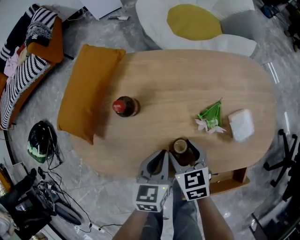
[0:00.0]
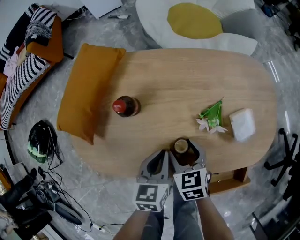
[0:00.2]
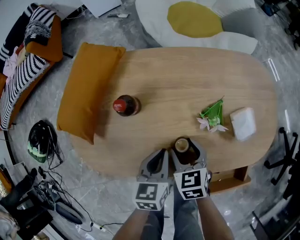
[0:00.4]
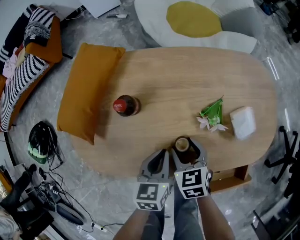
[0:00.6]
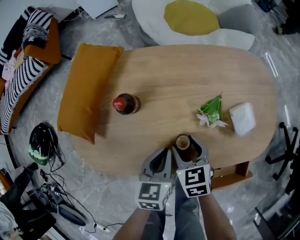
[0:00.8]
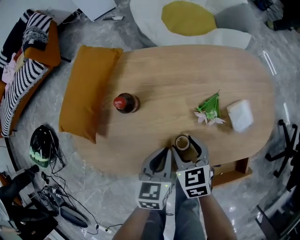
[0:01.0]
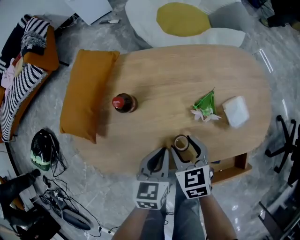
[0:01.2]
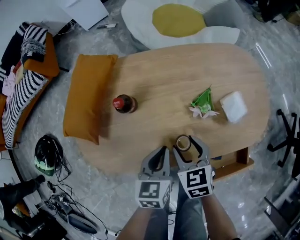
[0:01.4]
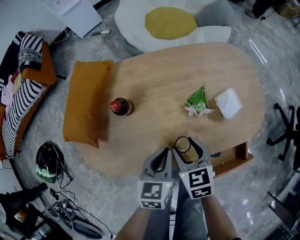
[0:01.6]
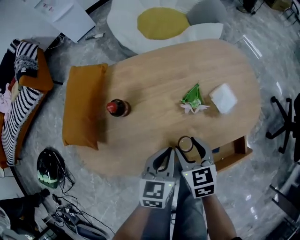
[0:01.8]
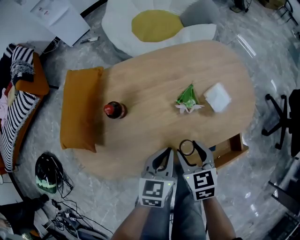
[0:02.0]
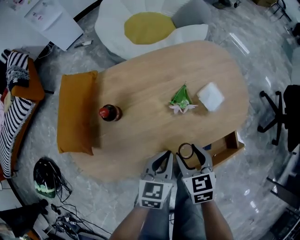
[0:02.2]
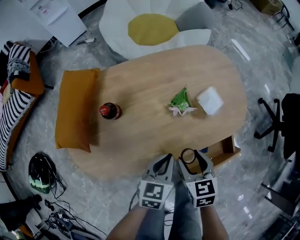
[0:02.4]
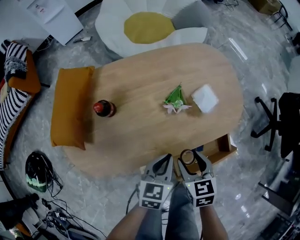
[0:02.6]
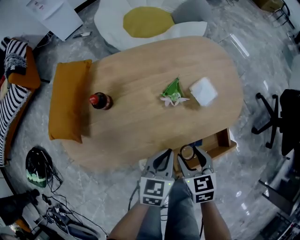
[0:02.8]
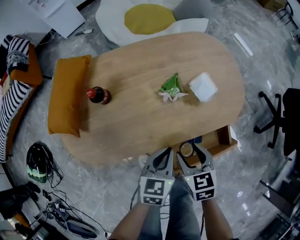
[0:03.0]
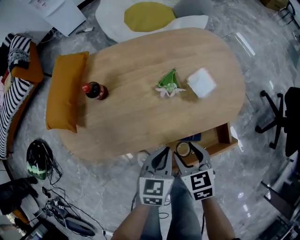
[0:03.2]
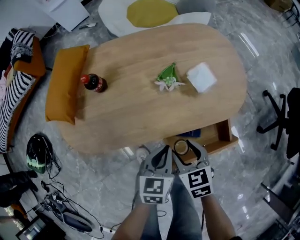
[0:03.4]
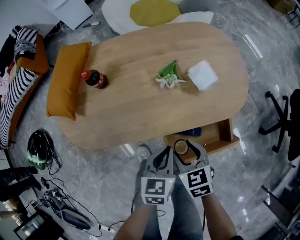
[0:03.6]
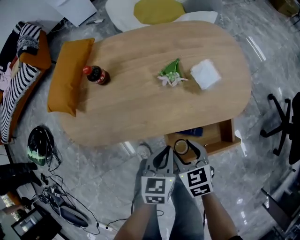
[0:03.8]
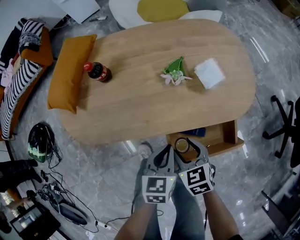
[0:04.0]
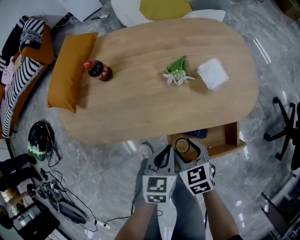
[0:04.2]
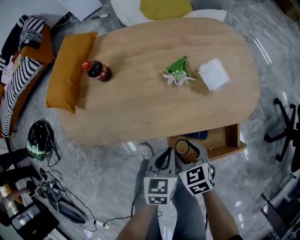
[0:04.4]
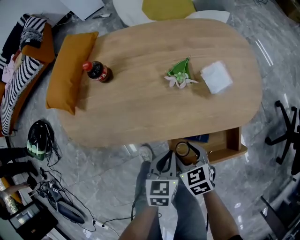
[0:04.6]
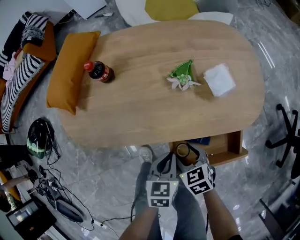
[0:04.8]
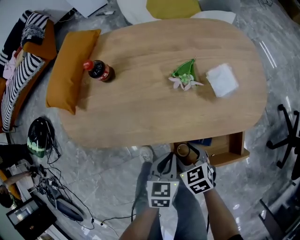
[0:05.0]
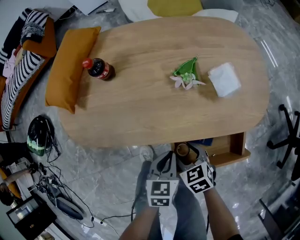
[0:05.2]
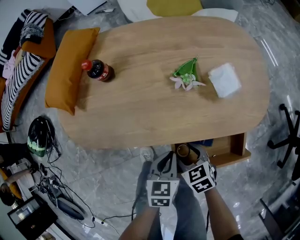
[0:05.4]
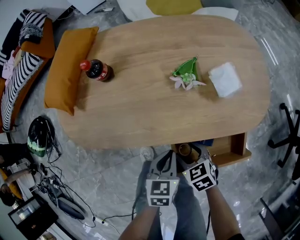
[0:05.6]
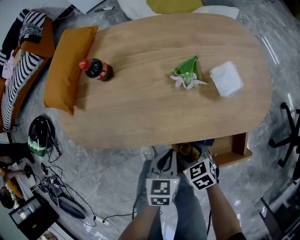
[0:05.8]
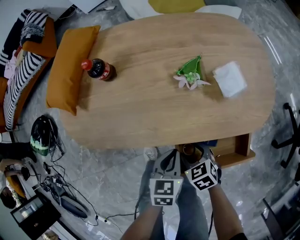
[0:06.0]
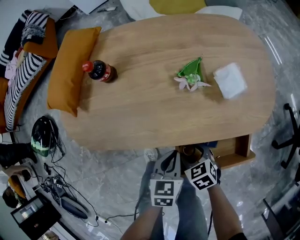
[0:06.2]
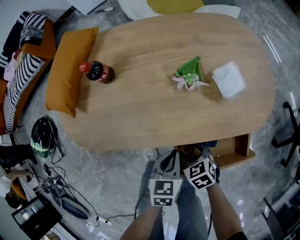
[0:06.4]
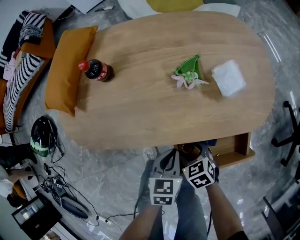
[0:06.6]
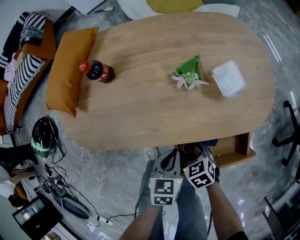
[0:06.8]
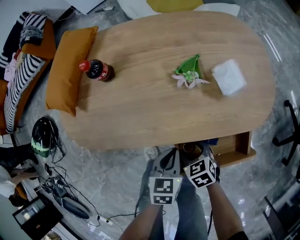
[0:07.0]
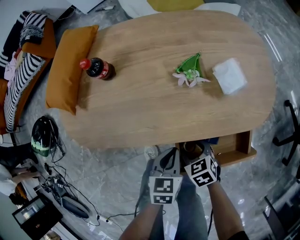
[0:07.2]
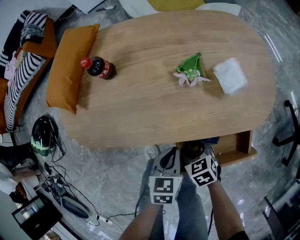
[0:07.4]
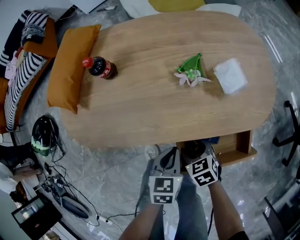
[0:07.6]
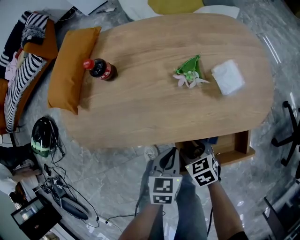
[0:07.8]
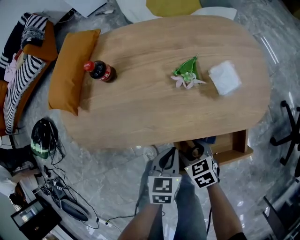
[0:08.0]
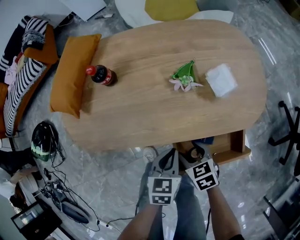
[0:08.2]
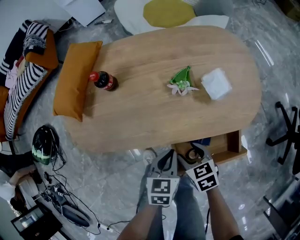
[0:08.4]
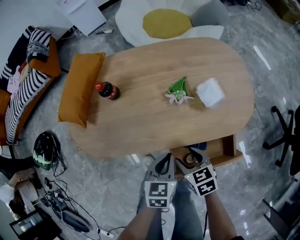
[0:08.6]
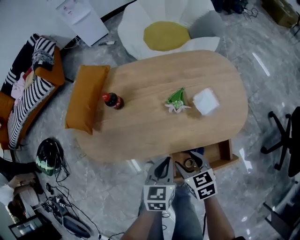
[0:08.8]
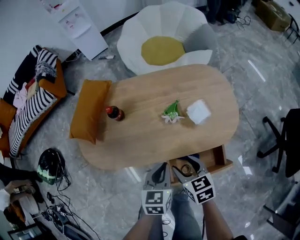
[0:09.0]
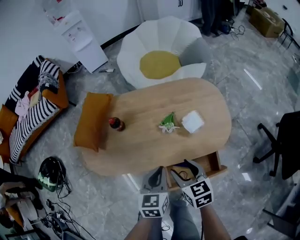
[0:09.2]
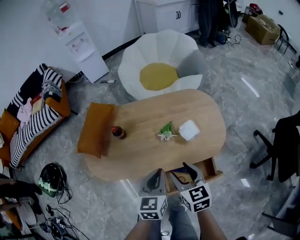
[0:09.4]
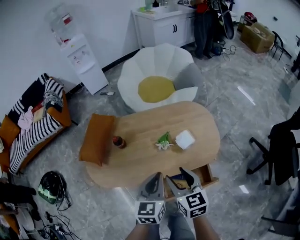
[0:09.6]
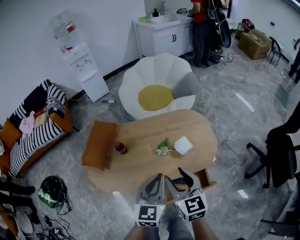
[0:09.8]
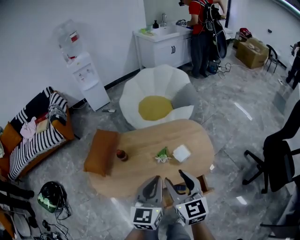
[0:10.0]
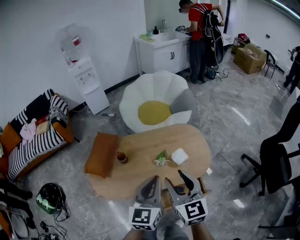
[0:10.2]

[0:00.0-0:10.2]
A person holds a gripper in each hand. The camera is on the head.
0:00.0 to 0:01.4: The right gripper shifts by roughly 5 cm.
0:01.4 to 0:03.0: The two grippers go approximately 15 cm to the right and backward.
0:03.0 to 0:04.4: The left gripper goes approximately 10 cm downward and backward. Meanwhile the right gripper goes some 10 cm downward, and rotates some 20 degrees.
0:04.4 to 0:05.8: The right gripper is displaced downward by roughly 5 cm.
0:05.8 to 0:07.2: There are only small adjustments of the grippers.
0:07.2 to 0:08.8: The two grippers go roughly 15 cm upward.
0:08.8 to 0:10.2: The two grippers go roughly 35 cm upward. The left gripper angles its fingers upward, by about 30 degrees. The right gripper tips its fingers upward by roughly 40 degrees.

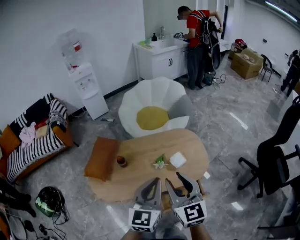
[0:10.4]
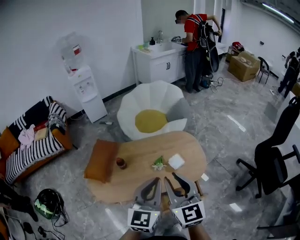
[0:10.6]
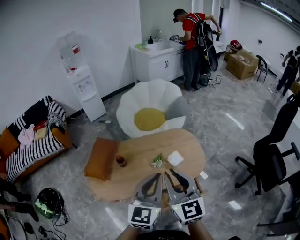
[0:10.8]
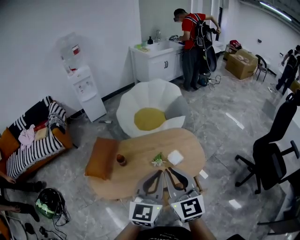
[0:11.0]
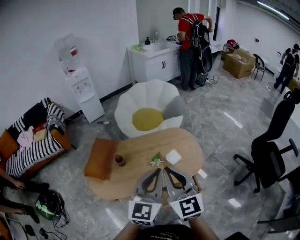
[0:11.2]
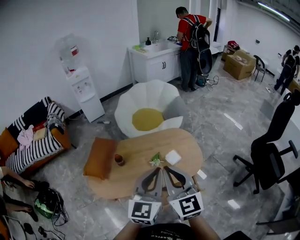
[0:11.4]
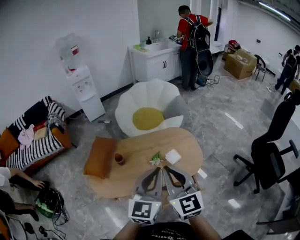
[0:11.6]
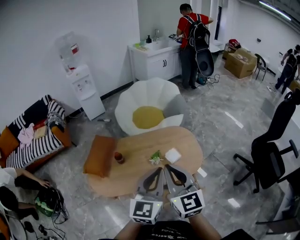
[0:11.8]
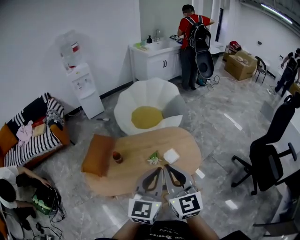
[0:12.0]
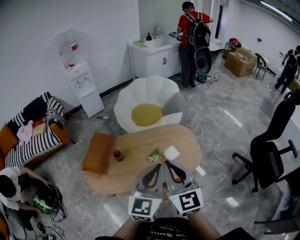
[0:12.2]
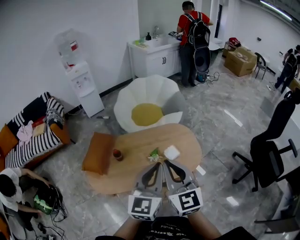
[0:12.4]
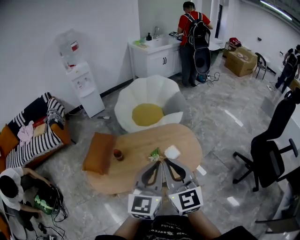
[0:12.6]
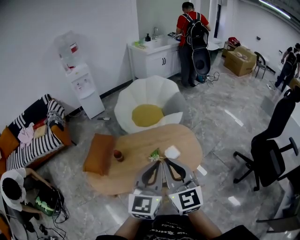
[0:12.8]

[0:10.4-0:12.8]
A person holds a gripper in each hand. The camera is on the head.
0:10.4 to 0:11.6: The grippers both shift upward by about 5 cm. The right gripper closes its fingers.
0:11.6 to 0:12.8: The grippers move only a little.

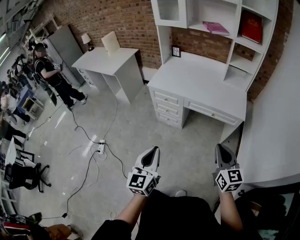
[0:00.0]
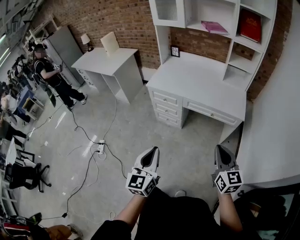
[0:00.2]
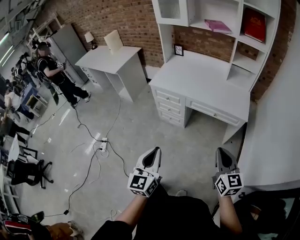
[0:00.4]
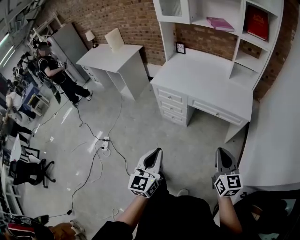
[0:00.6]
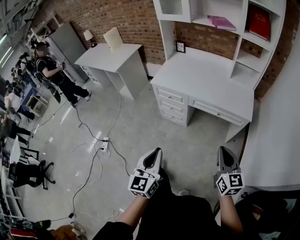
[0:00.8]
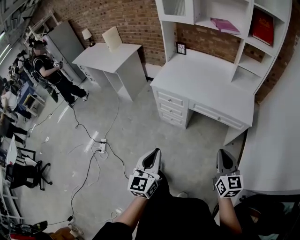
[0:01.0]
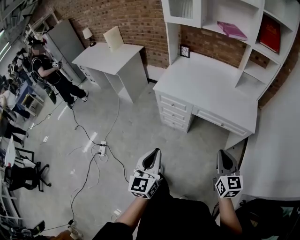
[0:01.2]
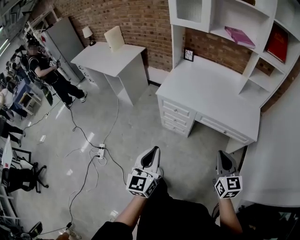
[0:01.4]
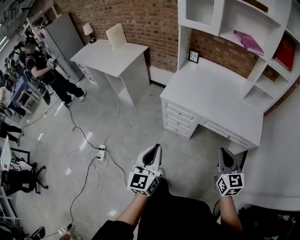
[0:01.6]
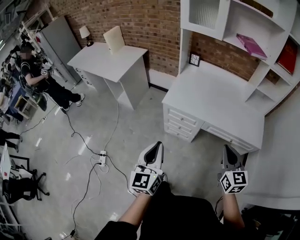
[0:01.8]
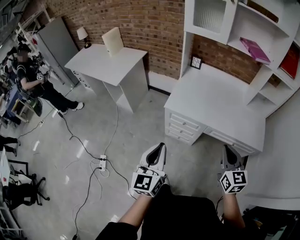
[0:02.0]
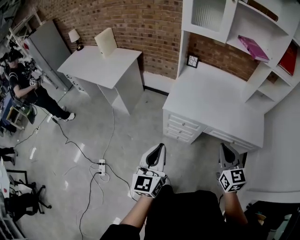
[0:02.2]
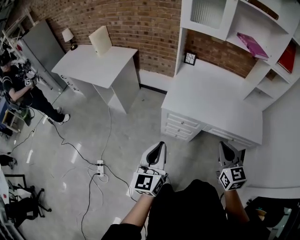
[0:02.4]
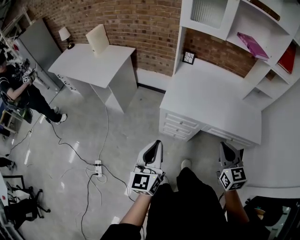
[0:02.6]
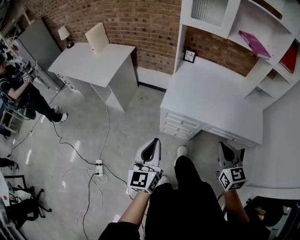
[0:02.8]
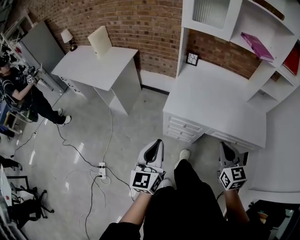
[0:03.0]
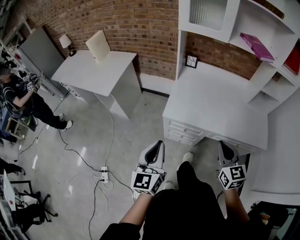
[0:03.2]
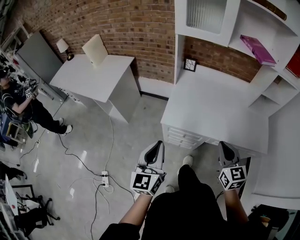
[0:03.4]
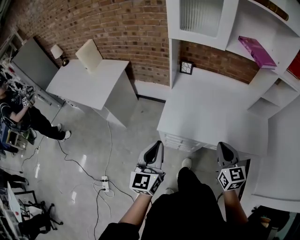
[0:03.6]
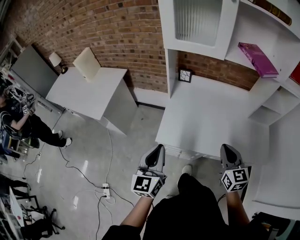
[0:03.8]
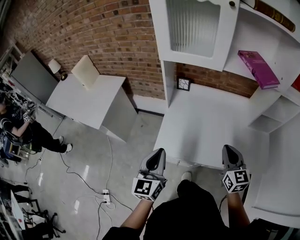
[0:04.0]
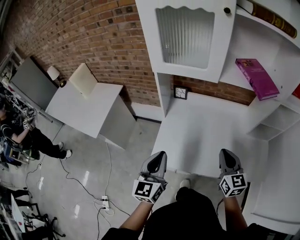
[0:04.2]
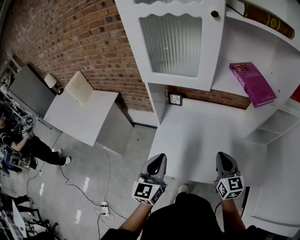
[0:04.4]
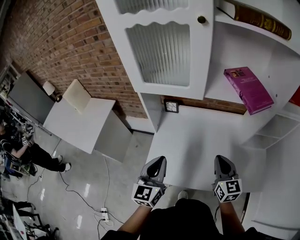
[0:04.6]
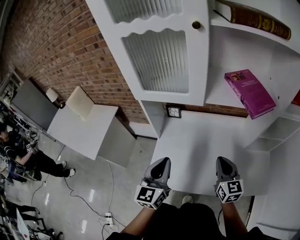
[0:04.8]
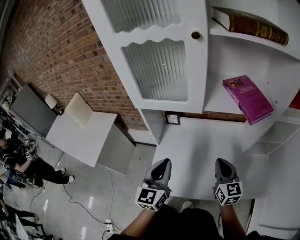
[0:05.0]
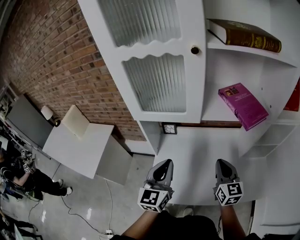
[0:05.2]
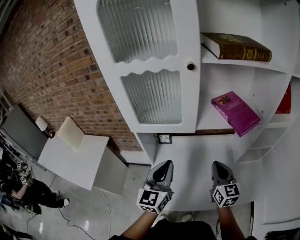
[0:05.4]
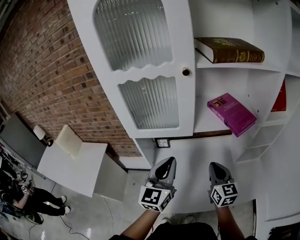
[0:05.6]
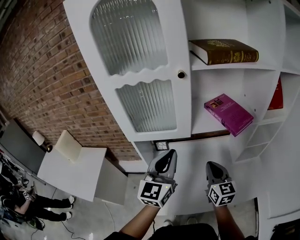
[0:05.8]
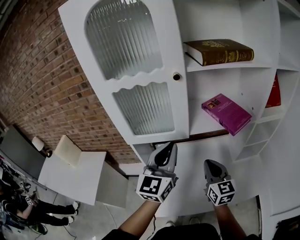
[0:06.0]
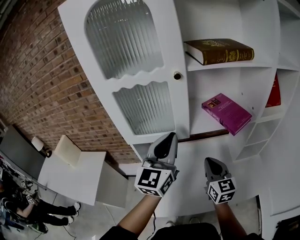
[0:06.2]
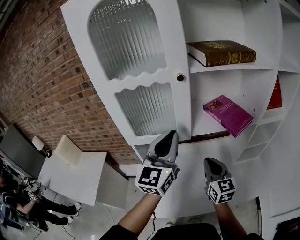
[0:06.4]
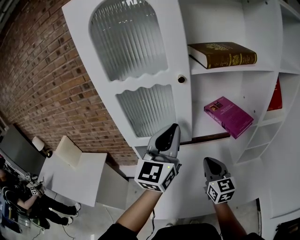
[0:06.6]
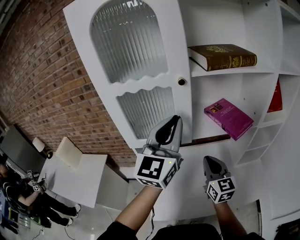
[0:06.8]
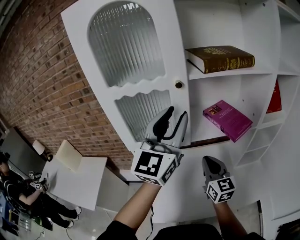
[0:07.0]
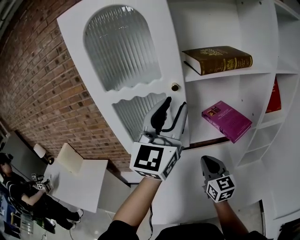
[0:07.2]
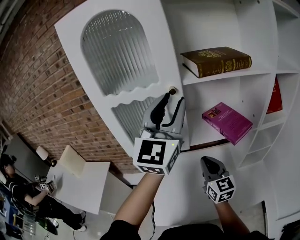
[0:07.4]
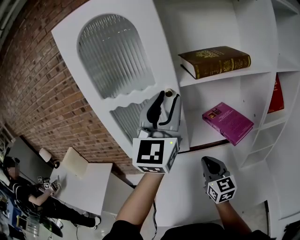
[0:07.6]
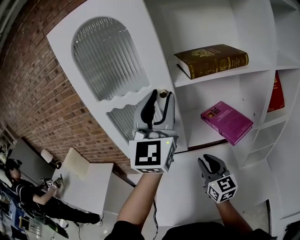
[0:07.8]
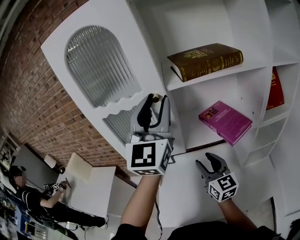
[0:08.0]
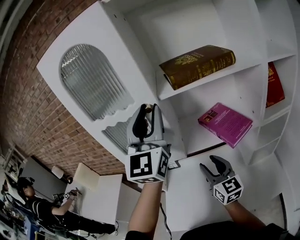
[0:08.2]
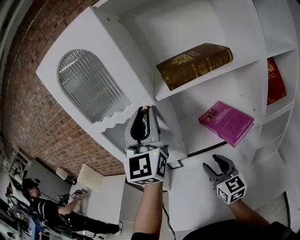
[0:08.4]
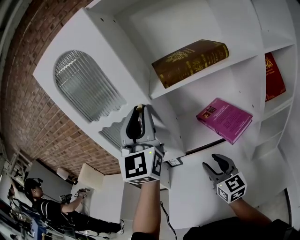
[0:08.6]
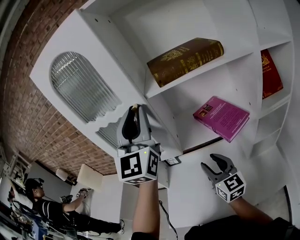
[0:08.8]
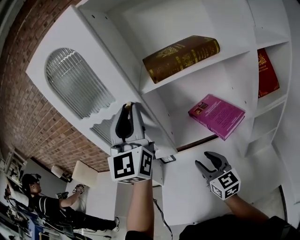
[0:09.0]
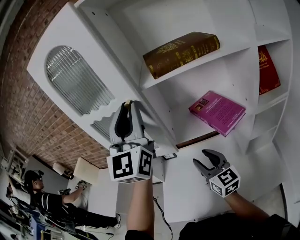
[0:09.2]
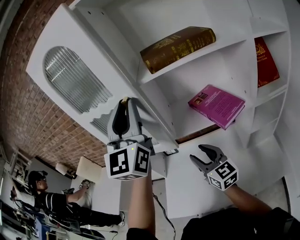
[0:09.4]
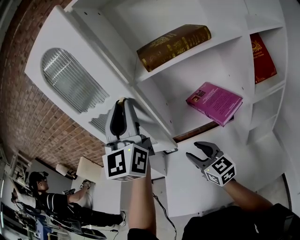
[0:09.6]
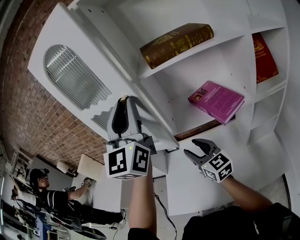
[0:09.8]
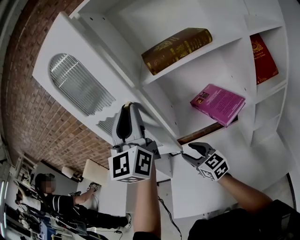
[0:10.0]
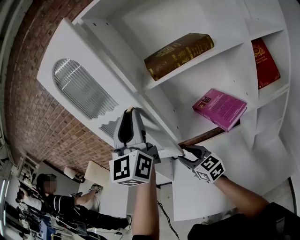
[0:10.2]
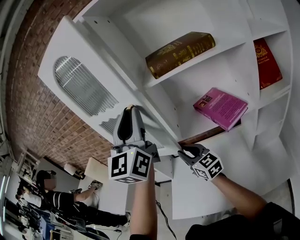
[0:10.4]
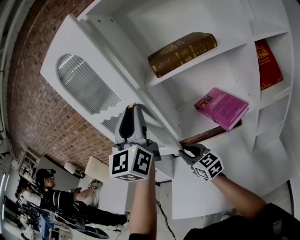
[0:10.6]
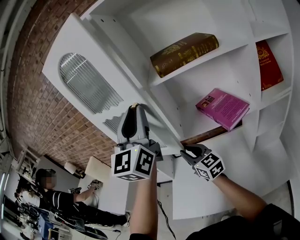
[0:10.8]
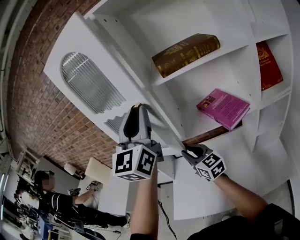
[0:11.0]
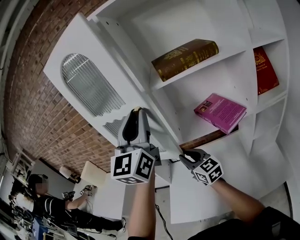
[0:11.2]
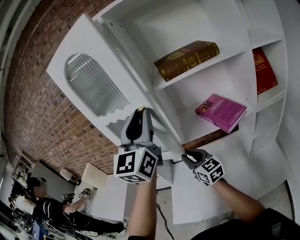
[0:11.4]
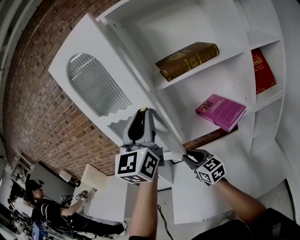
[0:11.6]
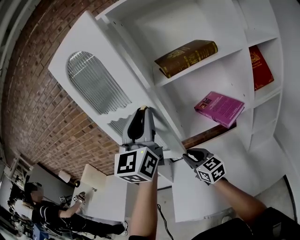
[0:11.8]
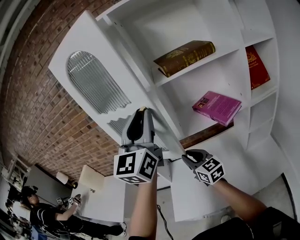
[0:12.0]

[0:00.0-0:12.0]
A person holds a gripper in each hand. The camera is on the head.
0:00.0 to 0:01.6: Both grippers move forward and to the left, roughly 30 cm.
0:01.6 to 0:03.0: Both grippers move forward and to the left, some 20 cm.
0:03.0 to 0:04.4: The left gripper goes roughly 40 cm forward and to the right. Meanwhile the right gripper goes approximately 35 cm forward.
0:04.4 to 0:06.0: The left gripper is displaced upward and forward by some 25 cm, and swivels some 30 degrees, while the right gripper is displaced upward and forward by some 15 cm.
0:06.0 to 0:07.6: The right gripper is displaced forward by about 5 cm. Meanwhile the left gripper is displaced upward by approximately 20 cm, rotates some 20 degrees, and opens its fingers.
0:07.6 to 0:09.0: The right gripper opens.
0:09.0 to 0:10.4: The right gripper travels to the left by about 10 cm, and closes.
0:10.4 to 0:12.0: The right gripper moves approximately 5 cm.
